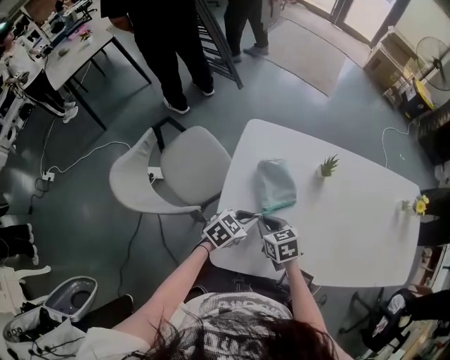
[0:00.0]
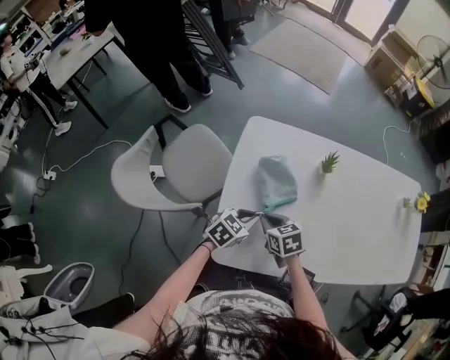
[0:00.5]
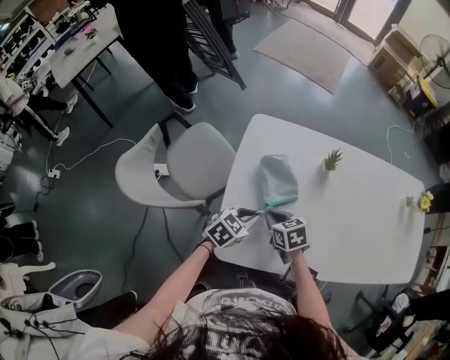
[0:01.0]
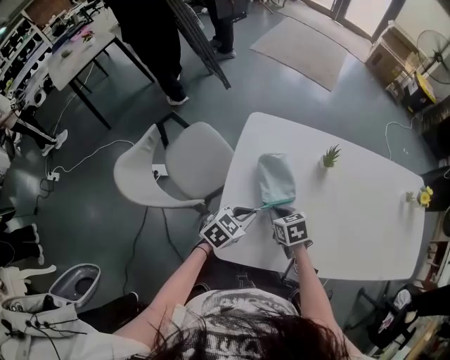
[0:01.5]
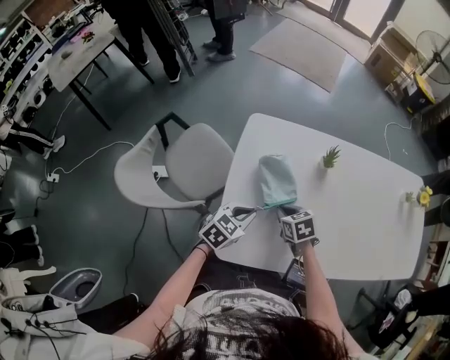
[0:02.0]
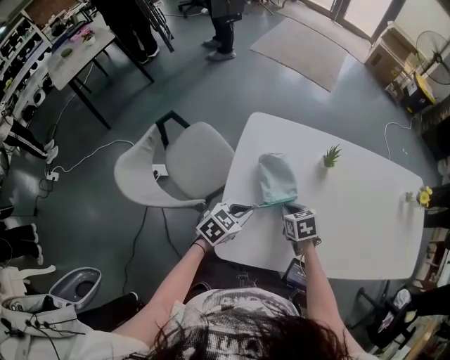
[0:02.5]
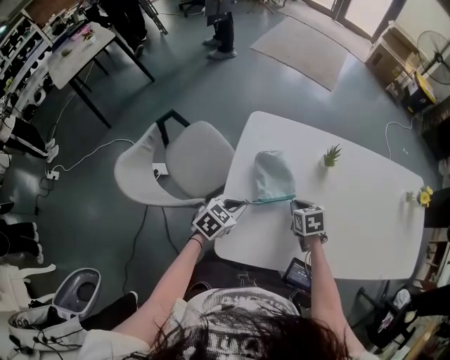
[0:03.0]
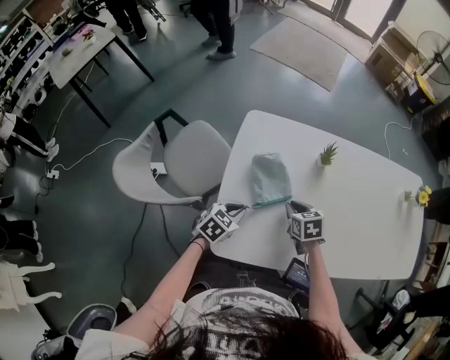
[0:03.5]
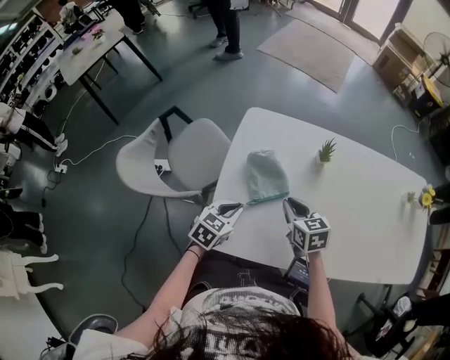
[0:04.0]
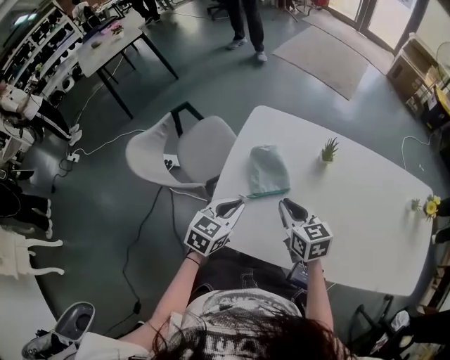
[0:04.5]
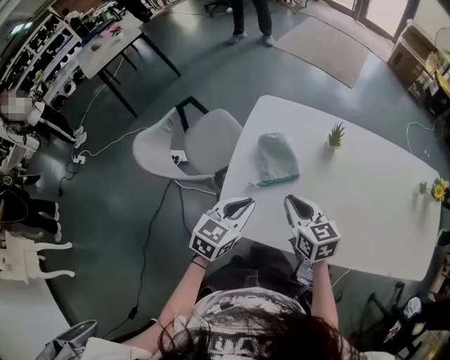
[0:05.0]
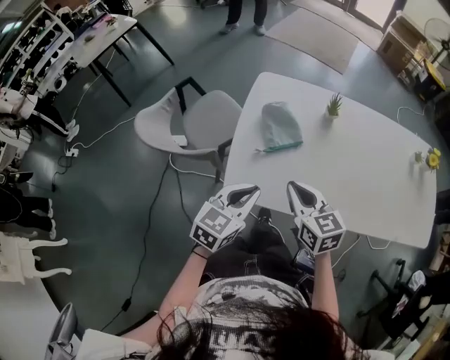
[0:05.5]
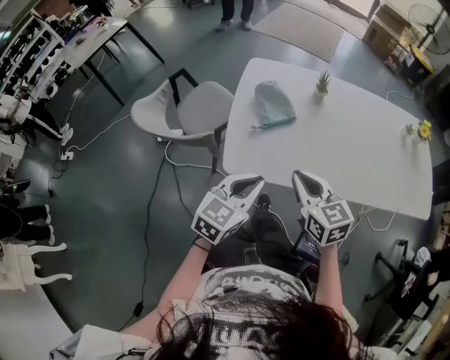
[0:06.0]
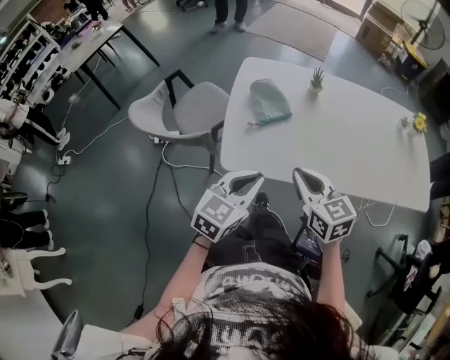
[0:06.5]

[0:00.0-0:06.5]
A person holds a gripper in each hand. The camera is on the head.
0:00.0 to 0:02.0: The right gripper shifts some 5 cm to the right.
0:02.0 to 0:04.5: The left gripper travels upward by about 5 cm, and rotates approximately 30 degrees. The right gripper travels upward by some 10 cm, and rotates approximately 30 degrees.
0:04.5 to 0:06.5: The grippers both shift backward by roughly 20 cm.

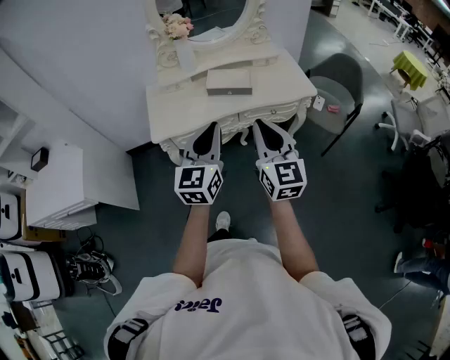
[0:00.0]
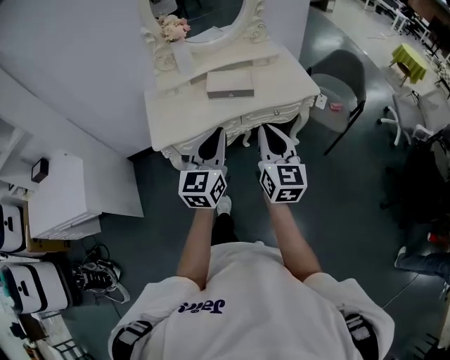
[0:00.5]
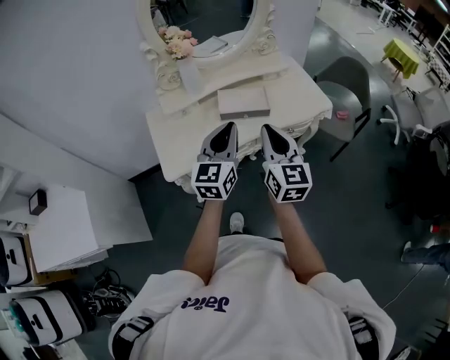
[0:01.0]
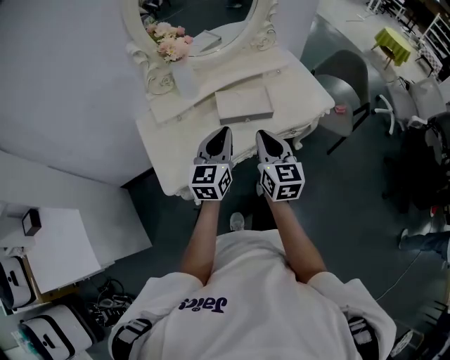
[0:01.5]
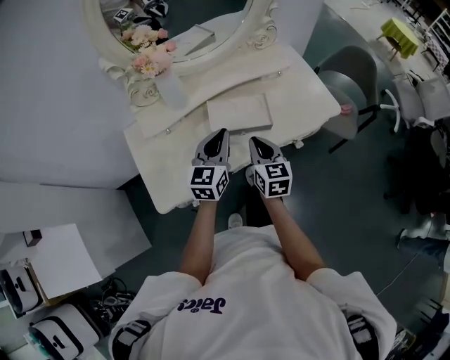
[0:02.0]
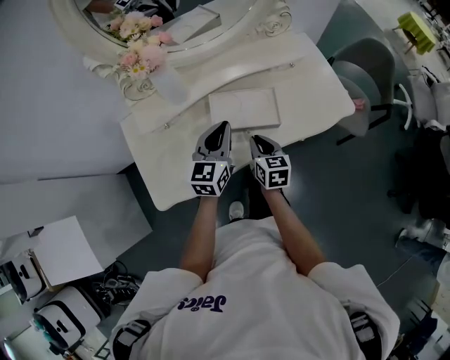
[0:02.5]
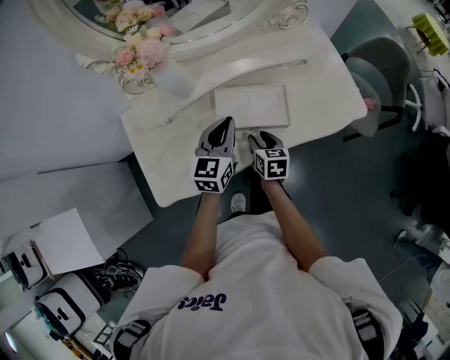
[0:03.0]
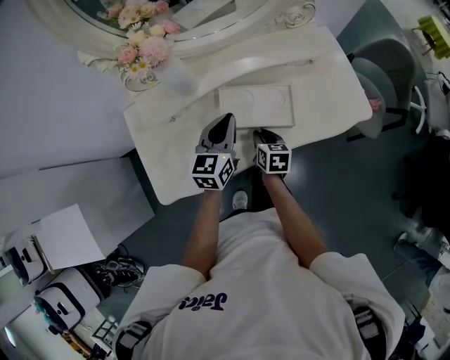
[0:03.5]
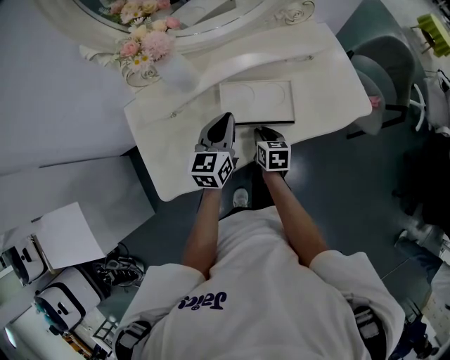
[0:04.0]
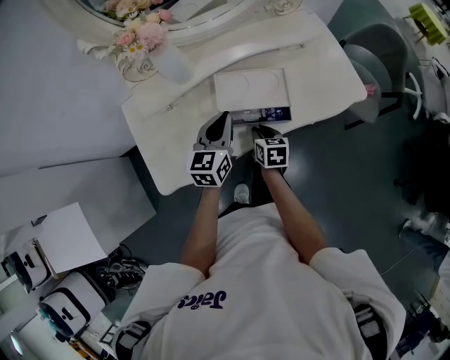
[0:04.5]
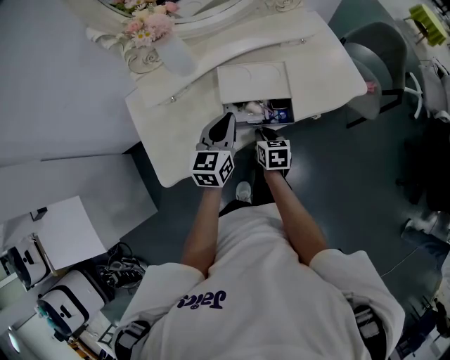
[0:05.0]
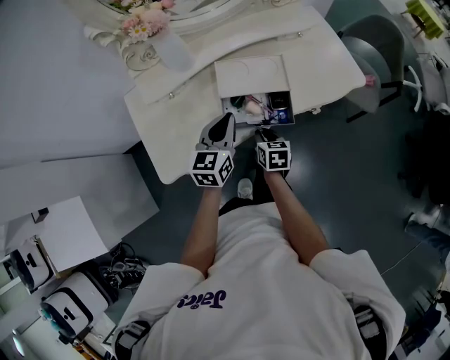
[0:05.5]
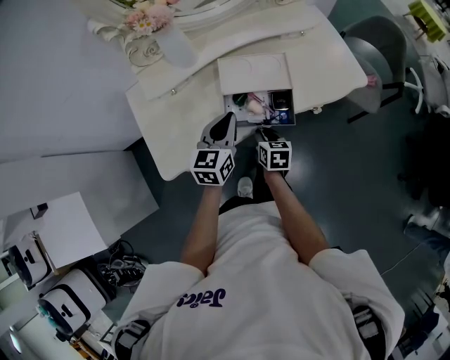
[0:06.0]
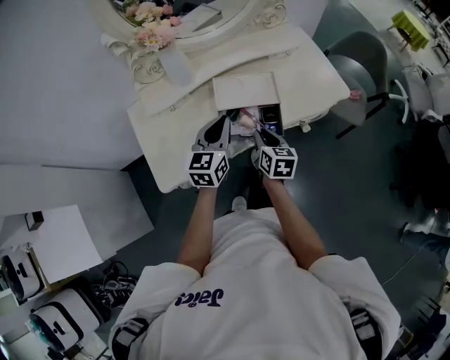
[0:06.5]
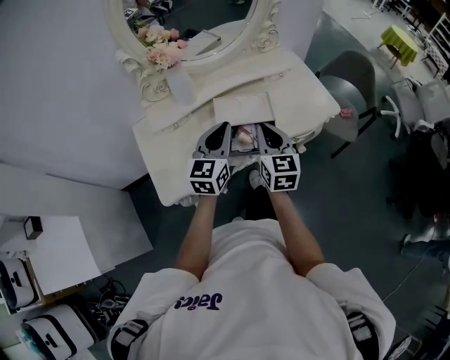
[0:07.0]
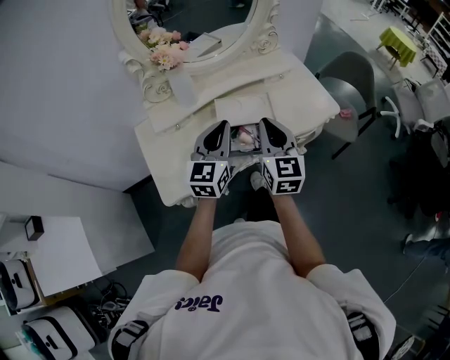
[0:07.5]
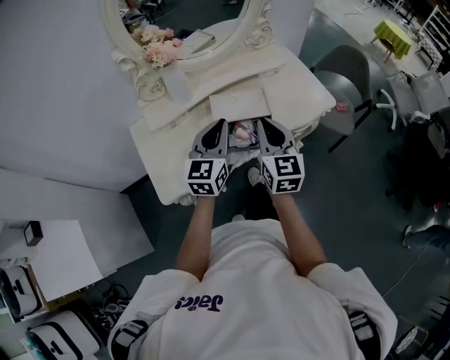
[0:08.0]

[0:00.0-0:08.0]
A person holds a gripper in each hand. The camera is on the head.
0:00.0 to 0:02.0: The two grippers go about 40 cm forward and downward. The right gripper rotates some 30 degrees.
0:02.0 to 0:04.0: The left gripper goes roughly 10 cm downward and forward, while the right gripper travels downward by about 20 cm, changes its angle by approximately 30 degrees, and opens and closes again.
0:04.0 to 0:06.0: Both grippers travel together backward, about 10 cm.
0:06.0 to 0:08.0: The right gripper travels upward by about 30 cm, and points its fingers approximately 40 degrees further upward. Meanwhile the left gripper shifts some 15 cm upward.

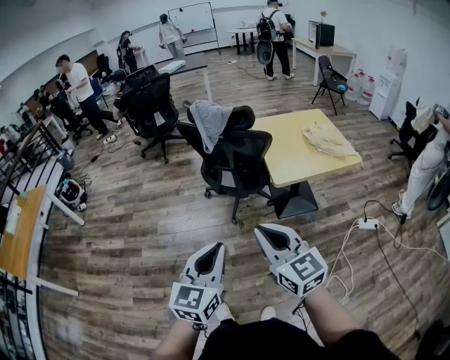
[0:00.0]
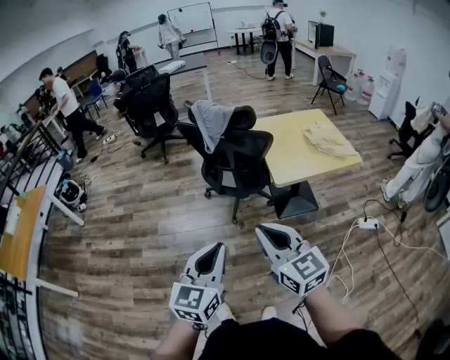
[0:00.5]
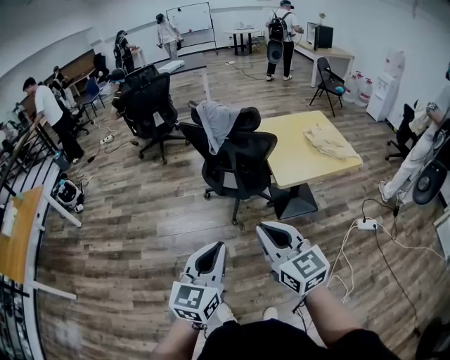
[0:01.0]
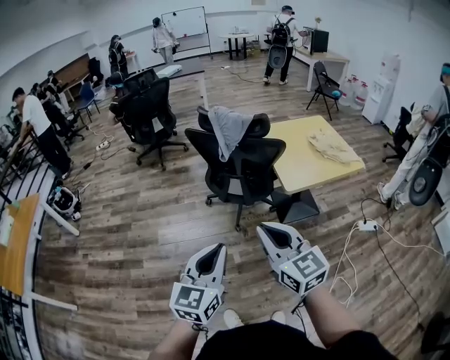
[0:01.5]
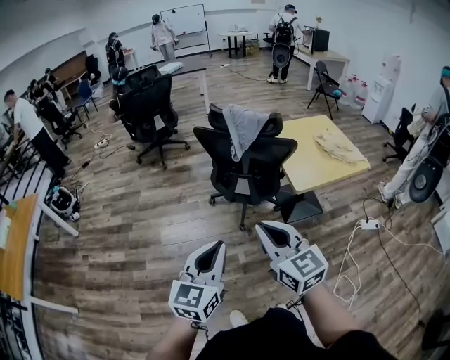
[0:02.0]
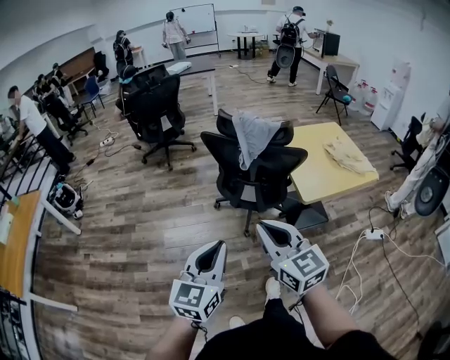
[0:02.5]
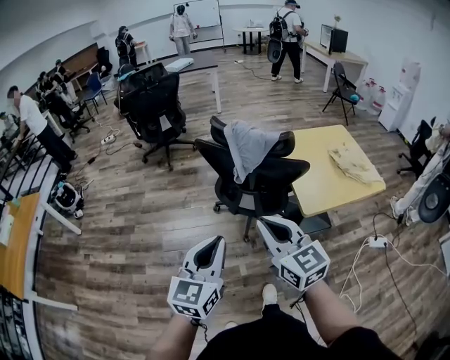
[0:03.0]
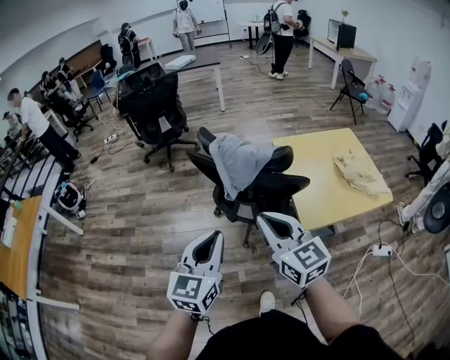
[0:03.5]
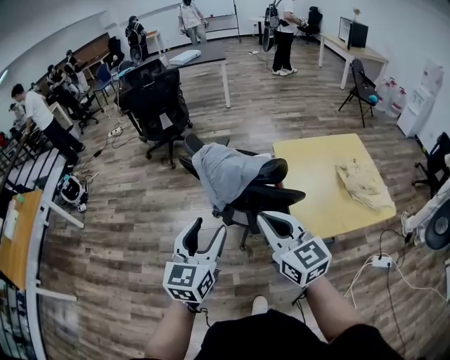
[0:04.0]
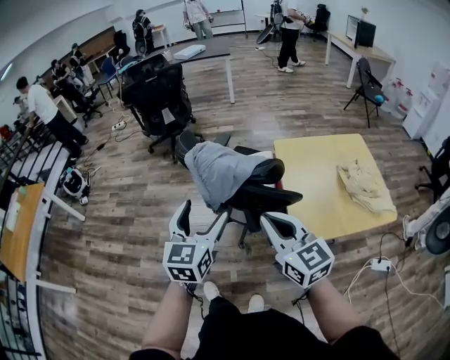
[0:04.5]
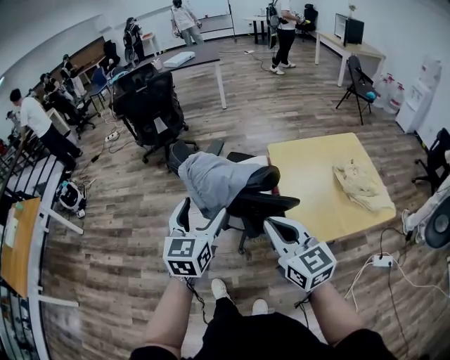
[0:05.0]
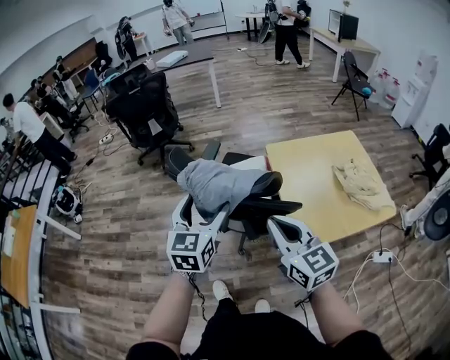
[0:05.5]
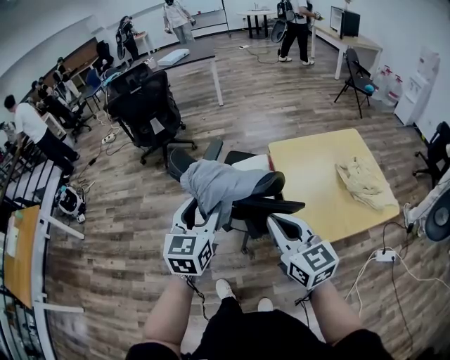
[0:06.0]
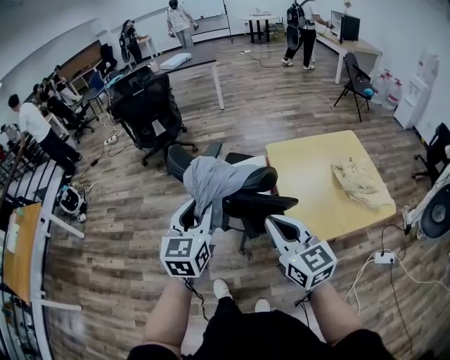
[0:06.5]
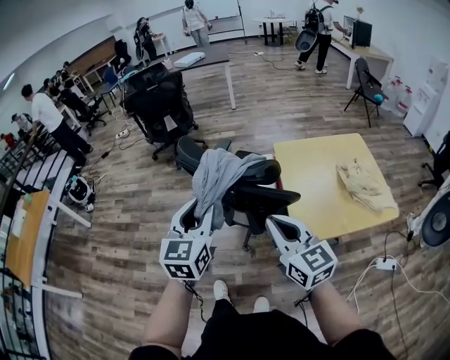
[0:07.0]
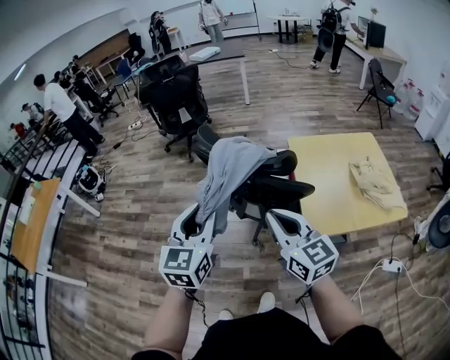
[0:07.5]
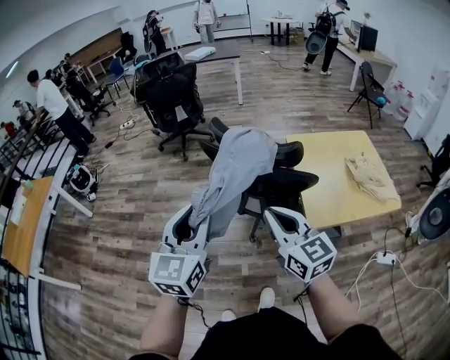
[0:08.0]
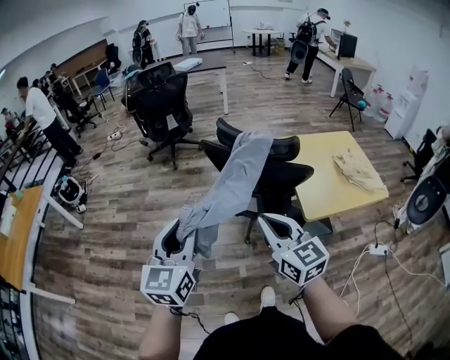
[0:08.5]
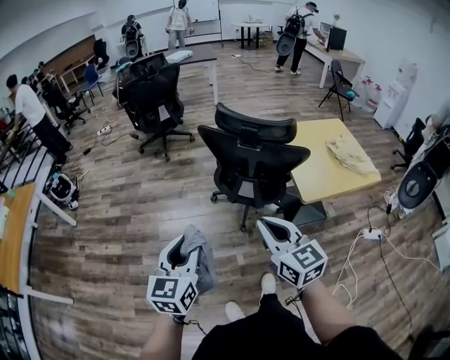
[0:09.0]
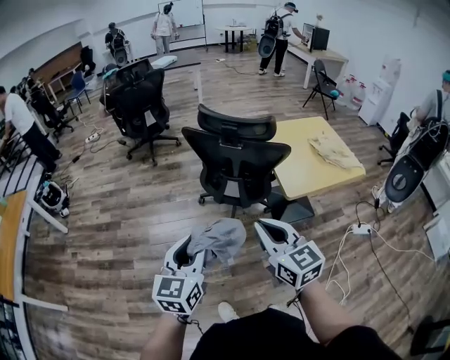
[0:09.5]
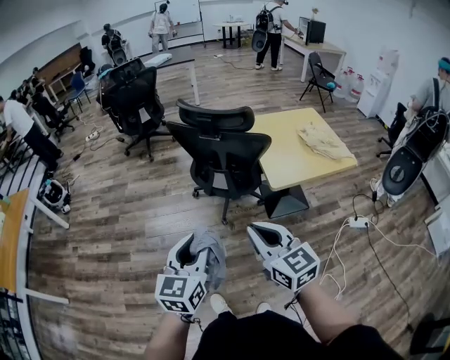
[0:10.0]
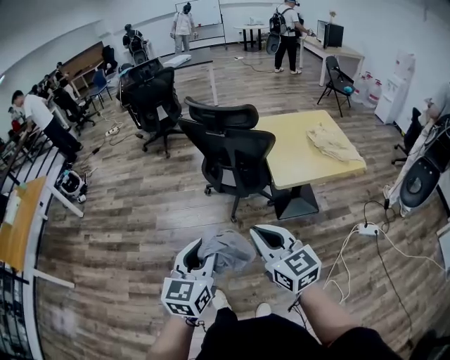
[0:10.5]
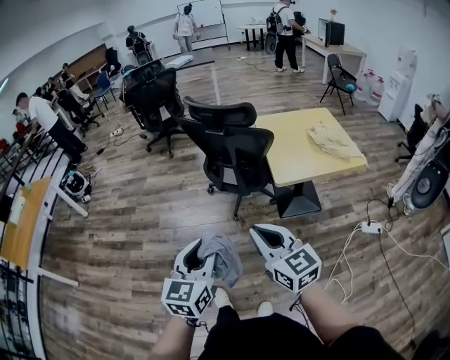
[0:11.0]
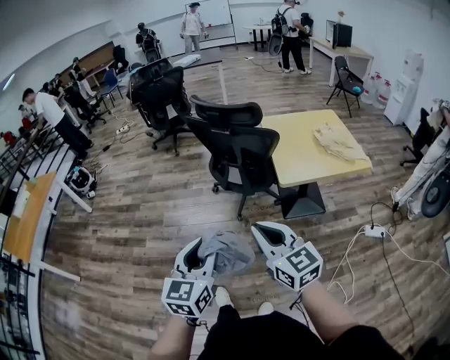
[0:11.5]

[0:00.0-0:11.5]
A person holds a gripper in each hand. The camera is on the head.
0:00.0 to 0:02.0: Both grippers travel together to the left and forward, approximately 20 cm.
0:02.0 to 0:04.0: Both grippers move forward and to the right, some 35 cm. The left gripper opens up.
0:04.0 to 0:06.0: The right gripper shifts about 5 cm to the right and forward. Meanwhile the left gripper heads forward, covering some 15 cm, and opens, then closes once more.
0:06.0 to 0:07.5: The left gripper travels backward and to the left by some 15 cm. The right gripper is displaced backward by roughly 10 cm.
0:07.5 to 0:09.5: The two grippers go about 25 cm backward and to the left.
0:09.5 to 0:11.5: Both grippers move backward and to the right, some 20 cm.

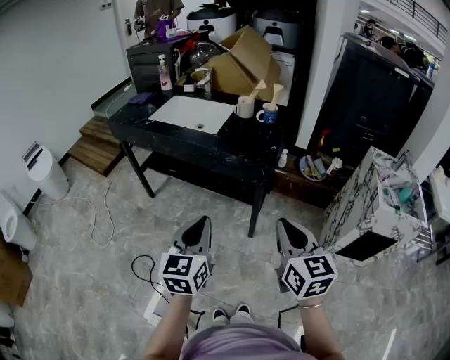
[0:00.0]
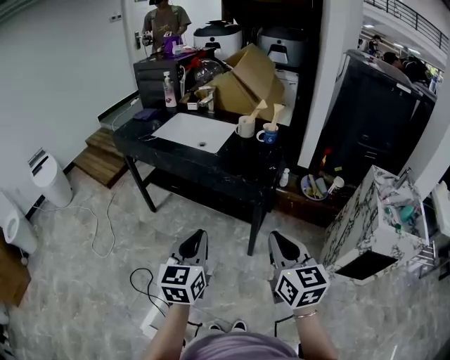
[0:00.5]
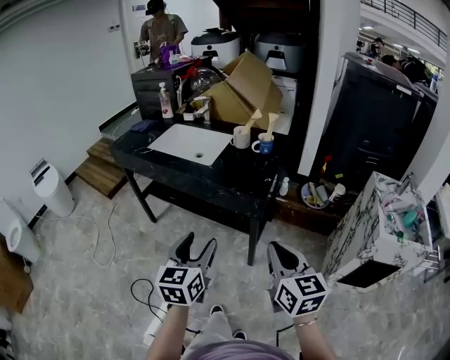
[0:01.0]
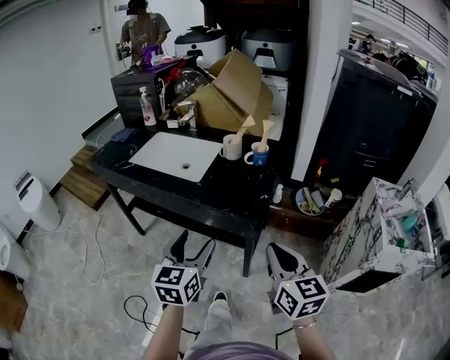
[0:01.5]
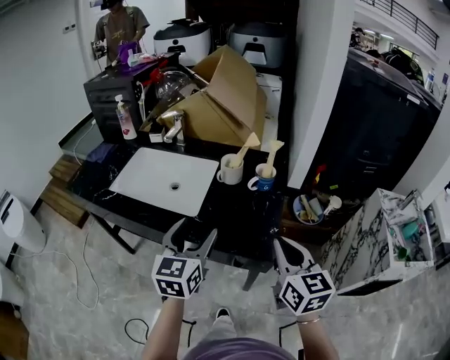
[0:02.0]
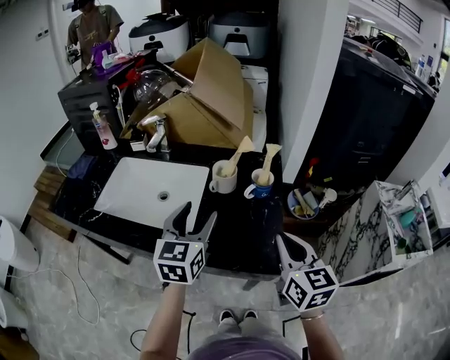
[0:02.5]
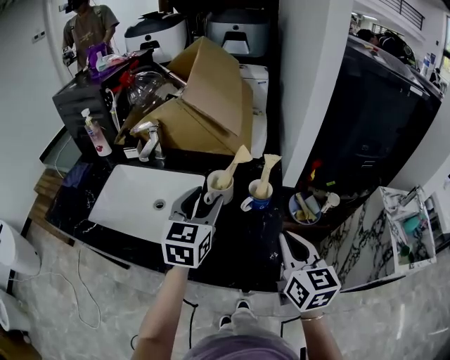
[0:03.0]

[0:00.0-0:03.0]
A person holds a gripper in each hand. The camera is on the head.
0:00.0 to 0:01.5: The grippers both shift forward by about 15 cm. The left gripper opens up.
0:01.5 to 0:03.0: Both grippers move forward, approximately 35 cm.
